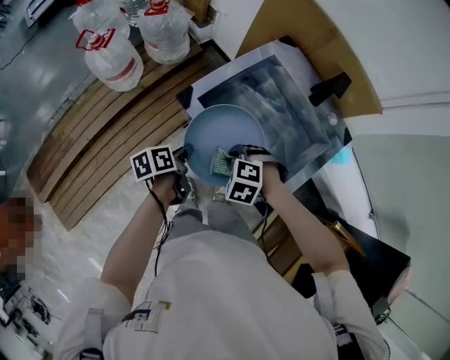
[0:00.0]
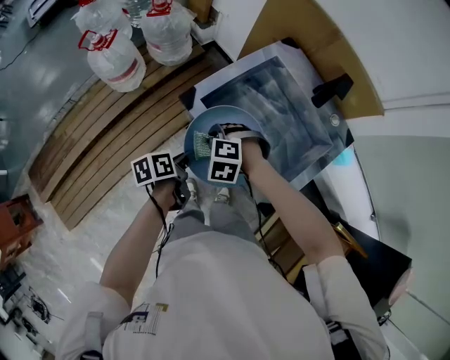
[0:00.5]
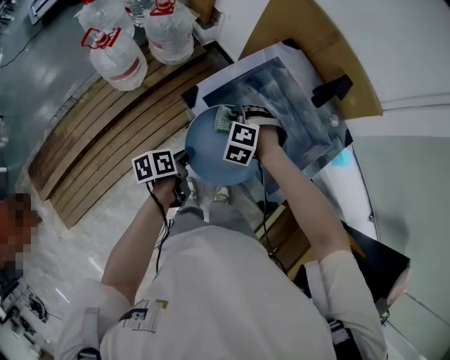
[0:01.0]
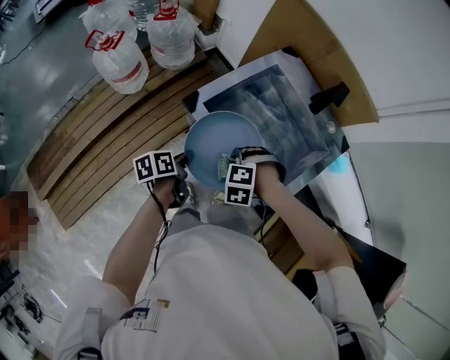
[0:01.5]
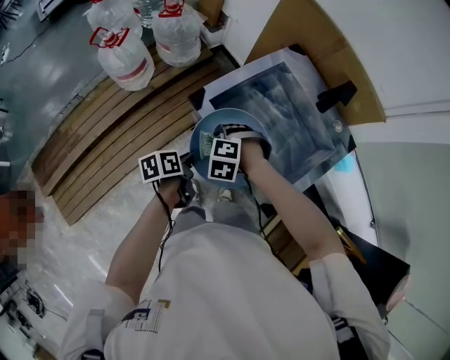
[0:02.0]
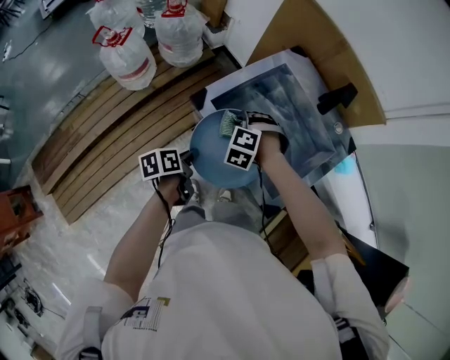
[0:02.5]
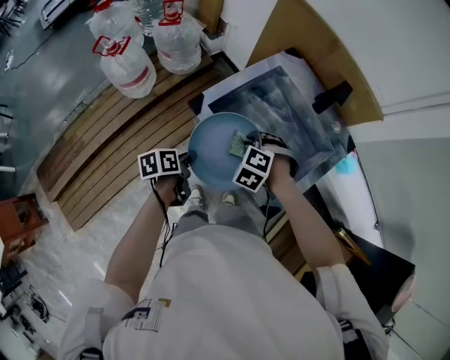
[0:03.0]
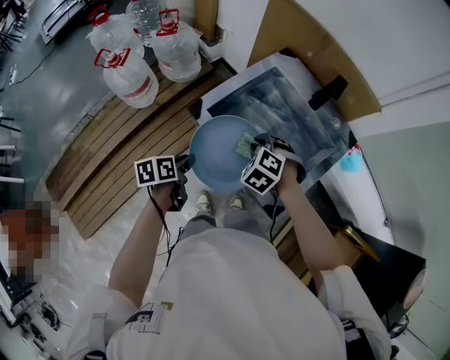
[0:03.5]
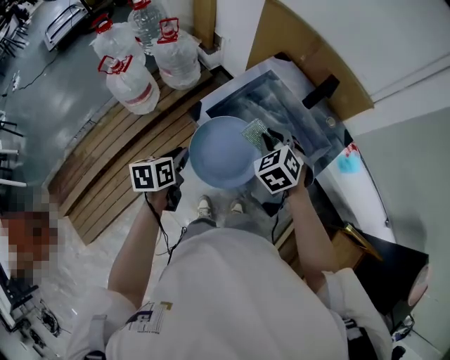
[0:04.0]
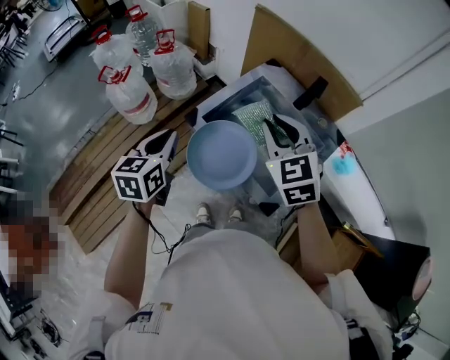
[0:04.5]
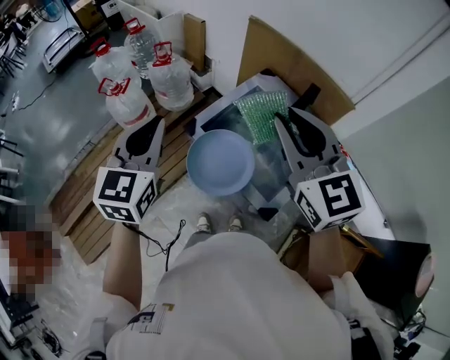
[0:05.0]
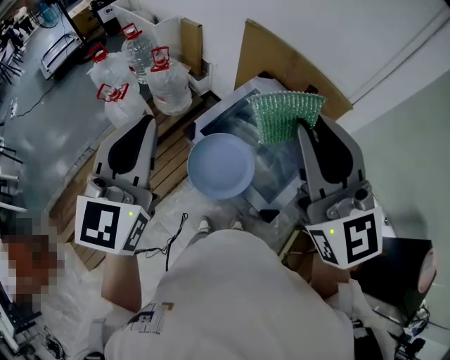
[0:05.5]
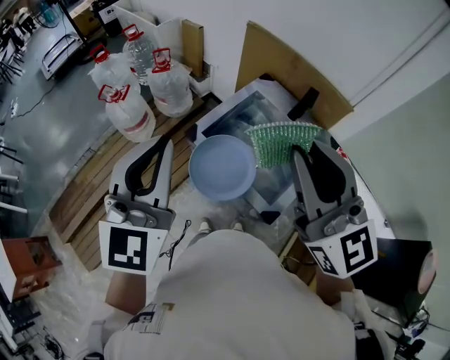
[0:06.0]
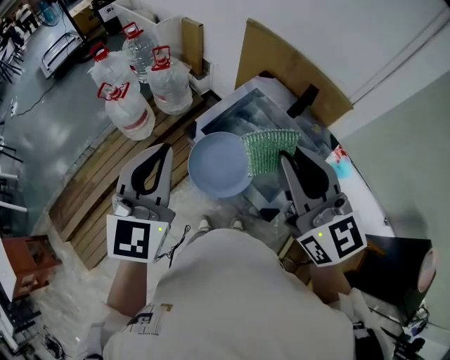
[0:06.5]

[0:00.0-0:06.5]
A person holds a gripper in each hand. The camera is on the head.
0:00.0 to 0:02.0: The right gripper changes place by approximately 10 cm.
0:02.0 to 0:04.5: Both grippers move upward, about 25 cm. The left gripper rolls clockwise, seen from behind, by approximately 50 degrees; the right gripper angles its fingers upward, by roughly 50 degrees.
0:04.5 to 0:06.5: The grippers both shift upward and backward by approximately 20 cm. The left gripper changes its angle by roughly 30 degrees, while the right gripper swivels roughly 30 degrees.

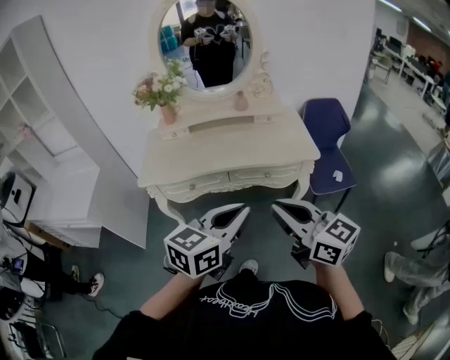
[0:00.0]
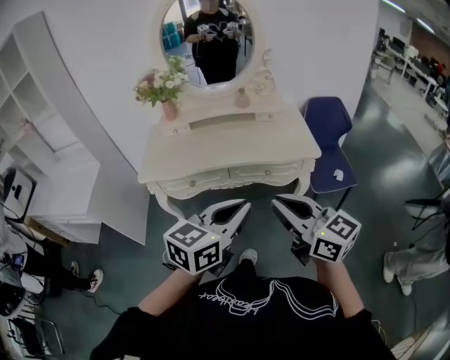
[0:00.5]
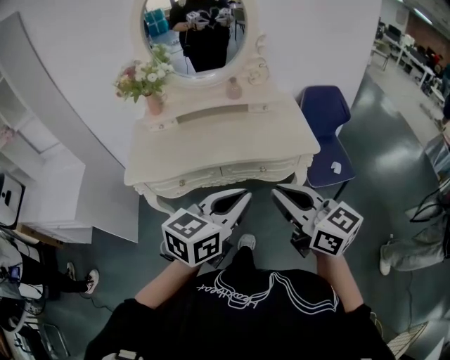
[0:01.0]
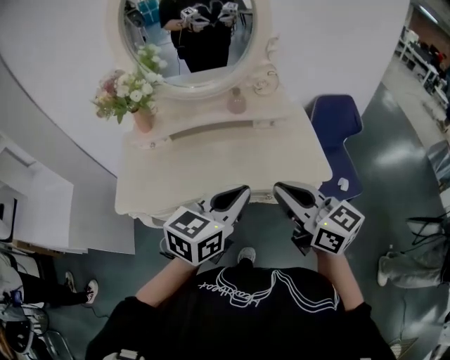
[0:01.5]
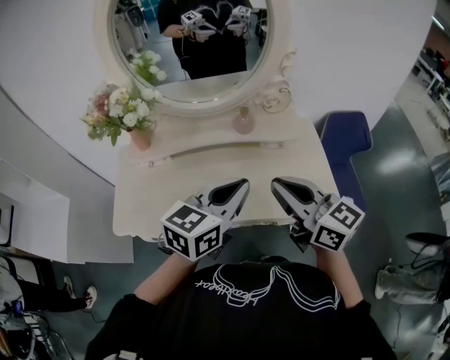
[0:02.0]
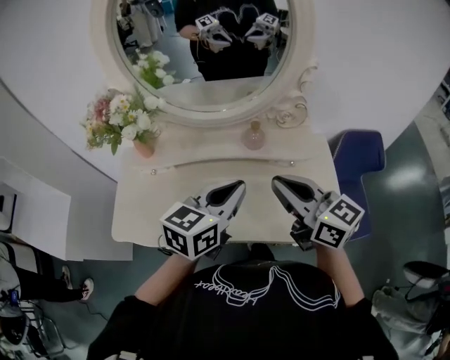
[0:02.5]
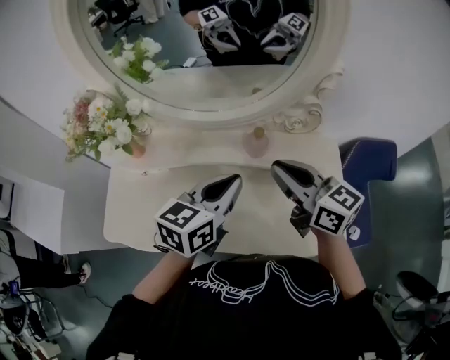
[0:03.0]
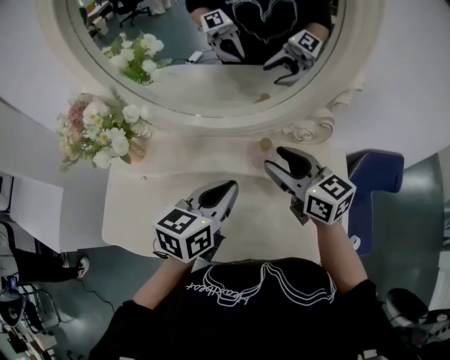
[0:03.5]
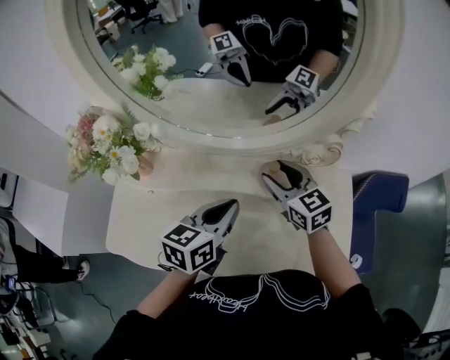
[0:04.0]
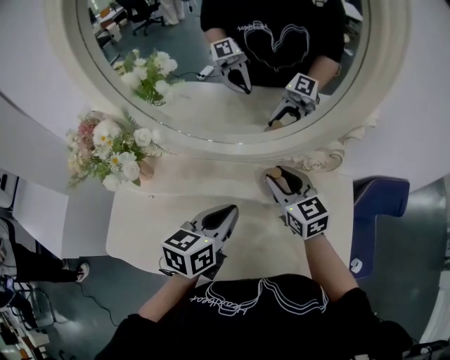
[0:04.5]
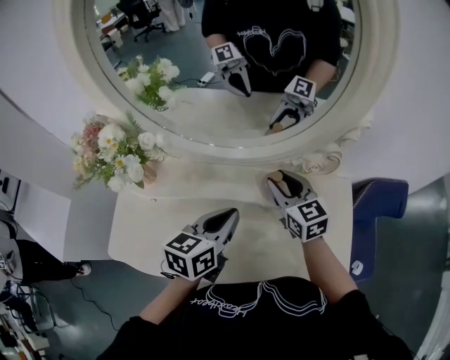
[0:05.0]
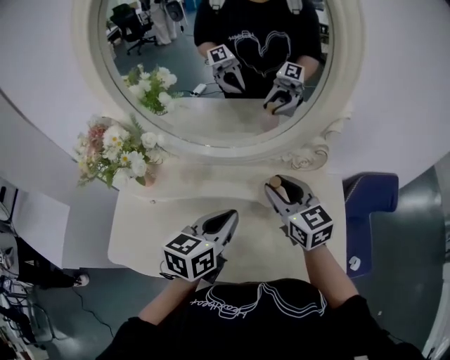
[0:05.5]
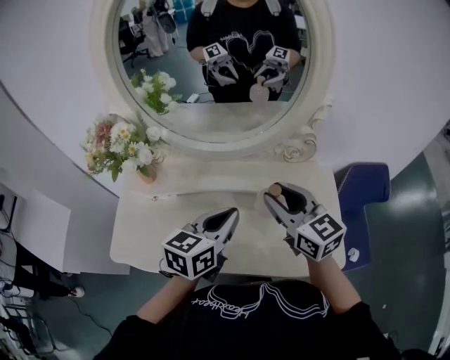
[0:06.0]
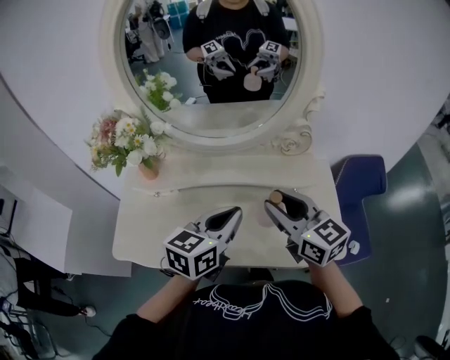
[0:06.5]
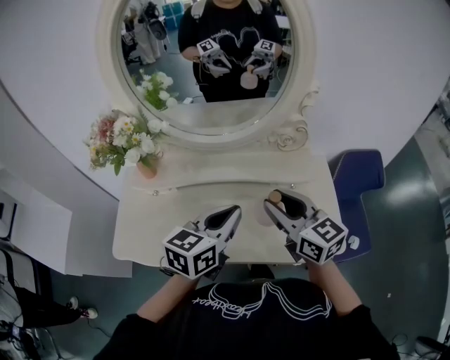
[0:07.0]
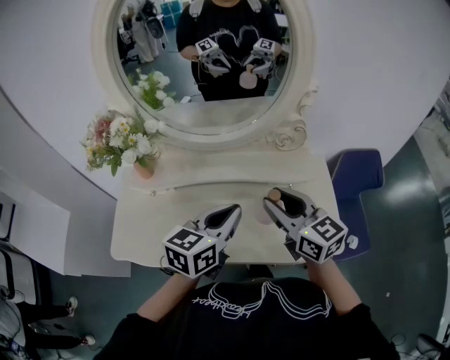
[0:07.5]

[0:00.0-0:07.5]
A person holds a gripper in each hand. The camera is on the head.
0:00.0 to 0:02.0: The grippers both shift forward by approximately 40 cm.
0:02.0 to 0:04.0: The right gripper moves forward and downward, about 35 cm, swivels some 20 degrees, and opens; the left gripper travels forward and downward by approximately 25 cm, and rotates approximately 20 degrees.
0:04.0 to 0:05.5: The right gripper moves upward, roughly 5 cm.
0:05.5 to 0:07.5: The right gripper is displaced backward by some 15 cm. The left gripper shifts about 10 cm backward.

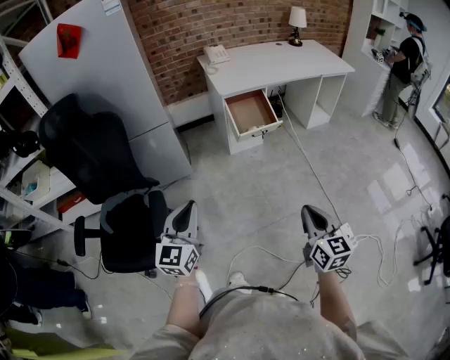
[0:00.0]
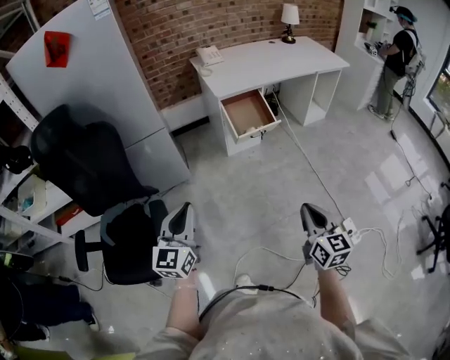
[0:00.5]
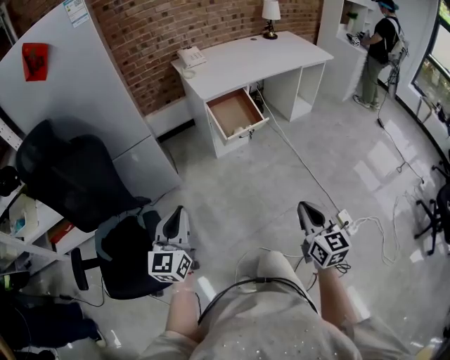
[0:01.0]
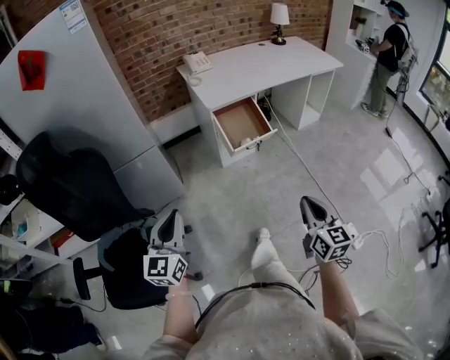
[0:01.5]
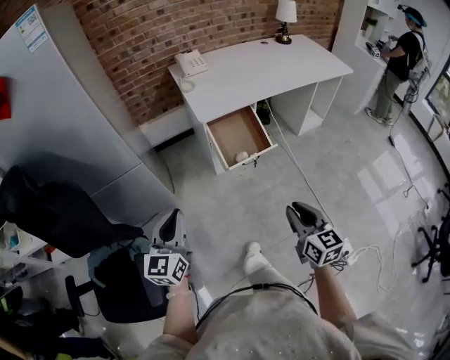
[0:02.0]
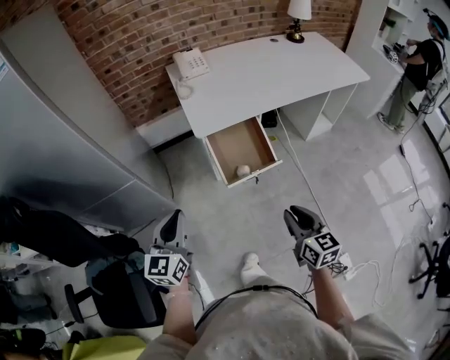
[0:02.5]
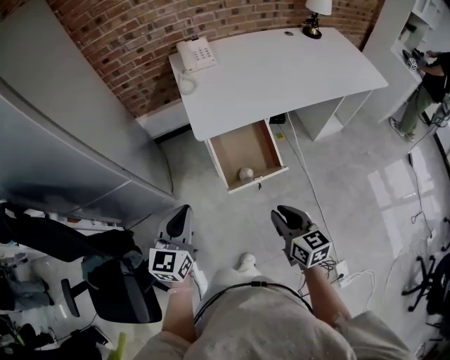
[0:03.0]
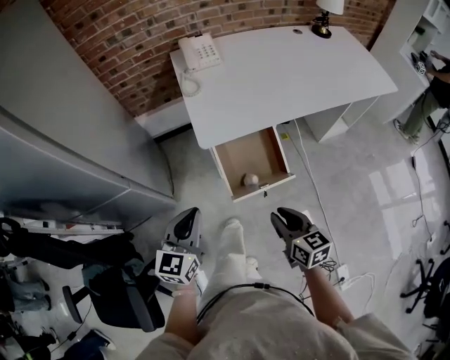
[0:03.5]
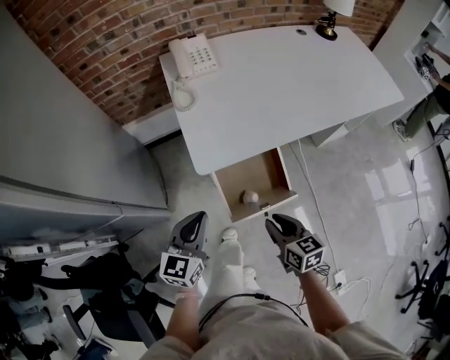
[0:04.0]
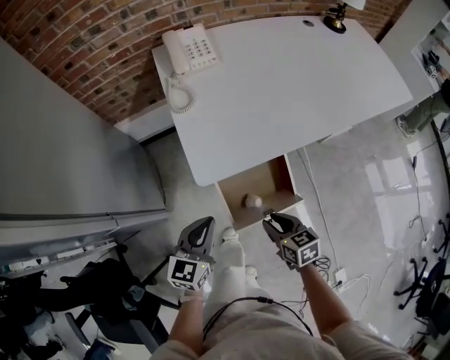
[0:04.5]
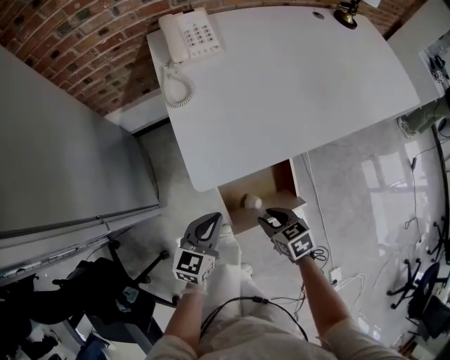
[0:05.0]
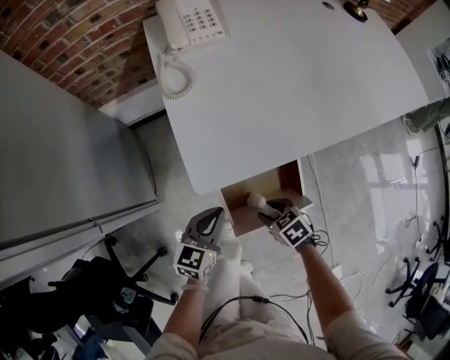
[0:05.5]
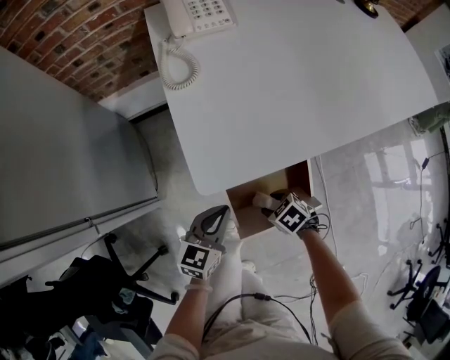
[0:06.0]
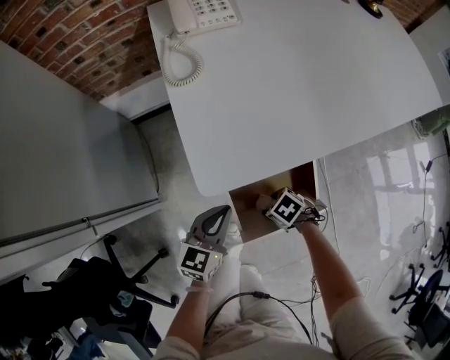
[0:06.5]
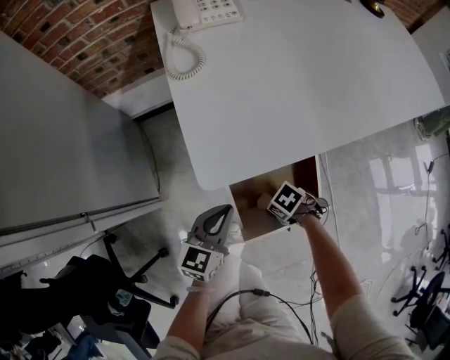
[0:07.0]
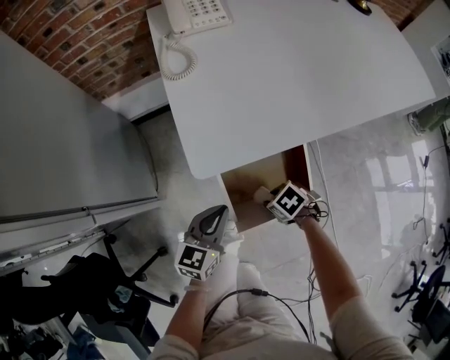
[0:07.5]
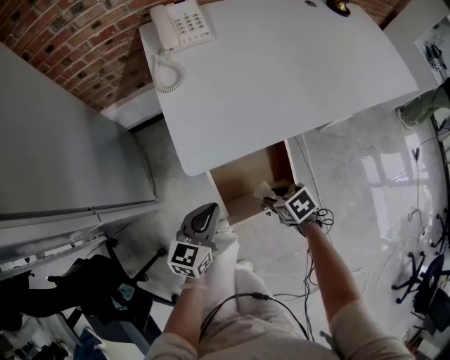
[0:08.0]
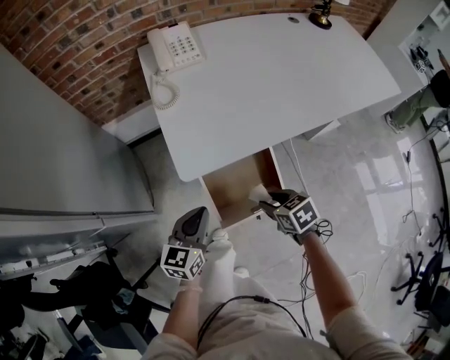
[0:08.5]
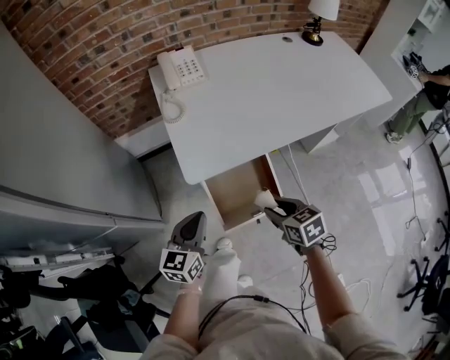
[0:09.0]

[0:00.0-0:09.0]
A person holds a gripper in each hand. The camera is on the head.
0:00.0 to 0:02.0: Both grippers move forward, some 25 cm.
0:02.0 to 0:04.5: The right gripper heads forward and downward, covering about 40 cm, and changes its angle by roughly 30 degrees. Meanwhile the left gripper travels forward, downward and to the right by about 40 cm.
0:04.5 to 0:07.0: The left gripper shifts roughly 15 cm downward. Meanwhile the right gripper shifts roughly 20 cm downward, changes its angle by some 50 degrees, and opens and closes again.
0:07.0 to 0:09.0: The right gripper is displaced upward by about 30 cm, and swivels some 50 degrees; the left gripper is displaced upward by approximately 15 cm.

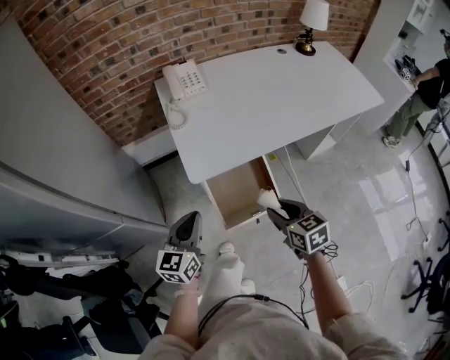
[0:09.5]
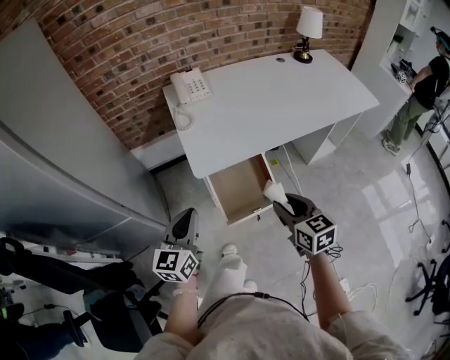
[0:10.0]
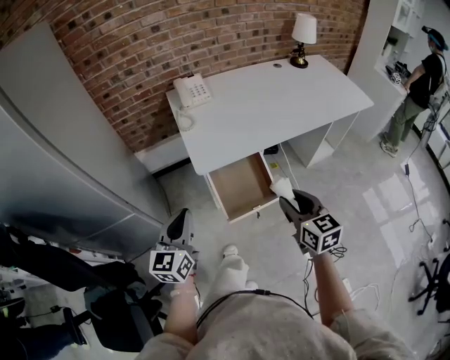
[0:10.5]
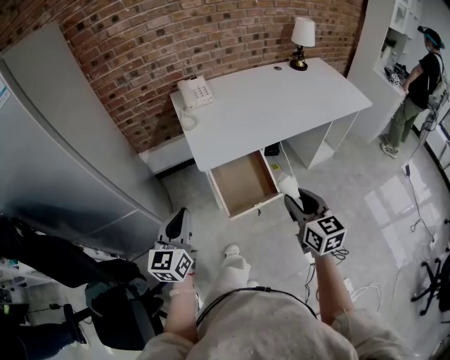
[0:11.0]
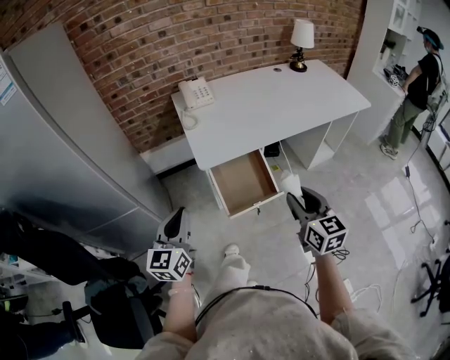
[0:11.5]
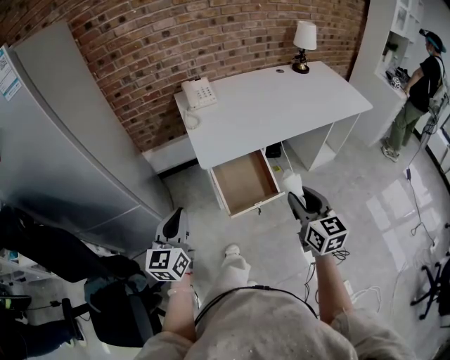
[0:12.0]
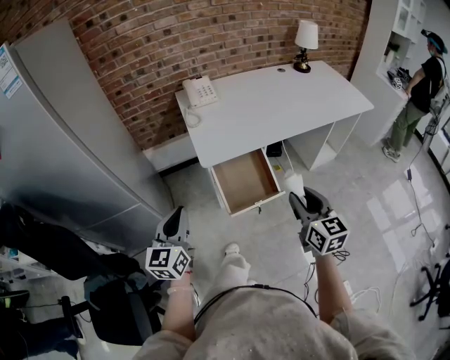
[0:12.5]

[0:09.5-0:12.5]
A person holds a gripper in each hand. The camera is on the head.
0:09.5 to 0:11.0: The left gripper moves backward and upward, roughly 15 cm; the right gripper heads upward and backward, covering some 15 cm, and rotates approximately 20 degrees.
0:11.0 to 0:12.5: There are only small adjustments of the grippers.
